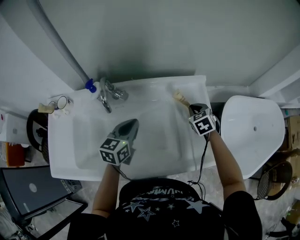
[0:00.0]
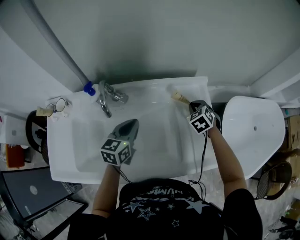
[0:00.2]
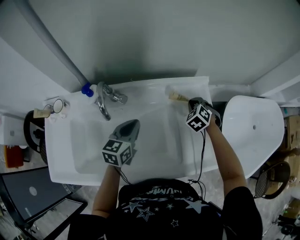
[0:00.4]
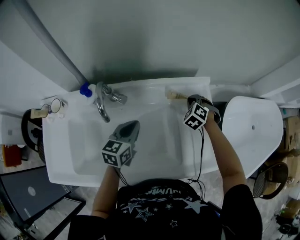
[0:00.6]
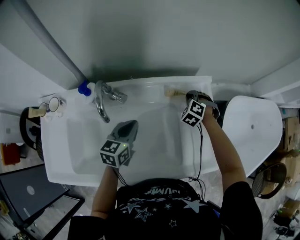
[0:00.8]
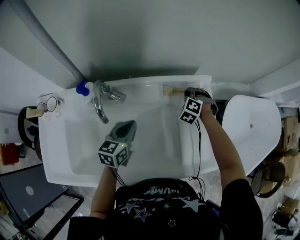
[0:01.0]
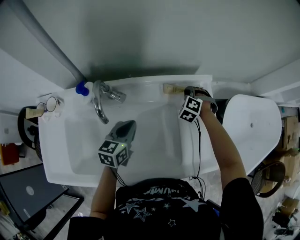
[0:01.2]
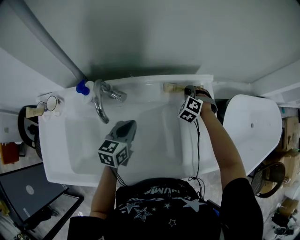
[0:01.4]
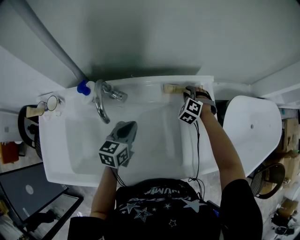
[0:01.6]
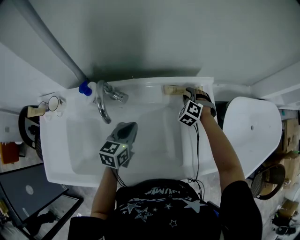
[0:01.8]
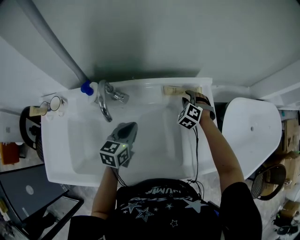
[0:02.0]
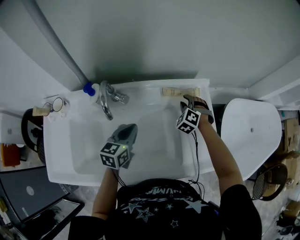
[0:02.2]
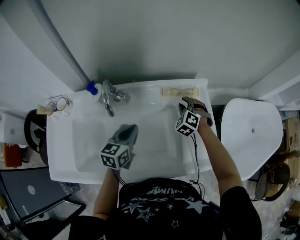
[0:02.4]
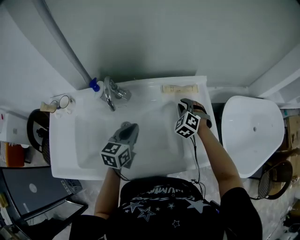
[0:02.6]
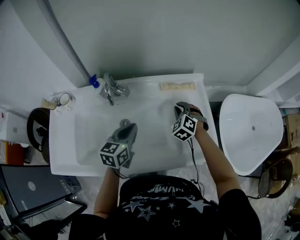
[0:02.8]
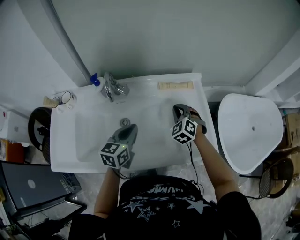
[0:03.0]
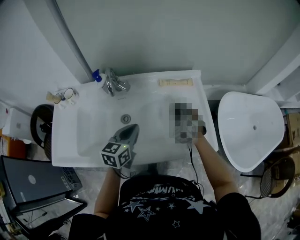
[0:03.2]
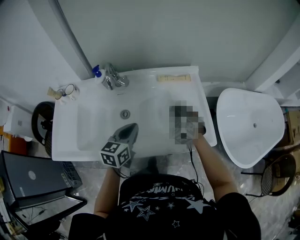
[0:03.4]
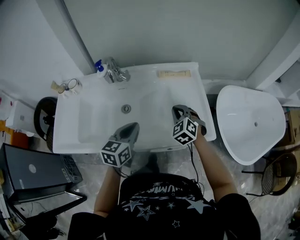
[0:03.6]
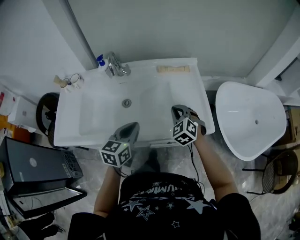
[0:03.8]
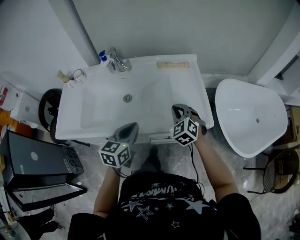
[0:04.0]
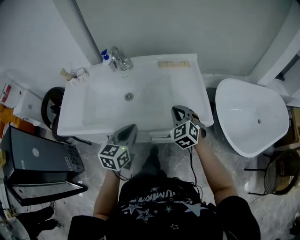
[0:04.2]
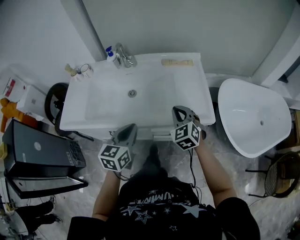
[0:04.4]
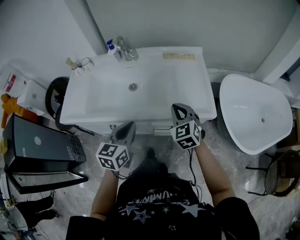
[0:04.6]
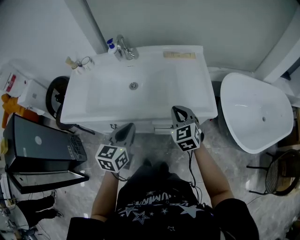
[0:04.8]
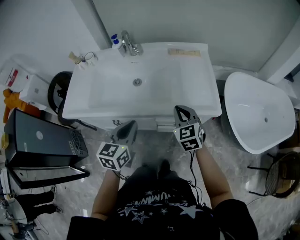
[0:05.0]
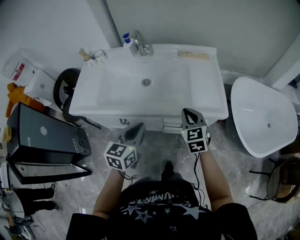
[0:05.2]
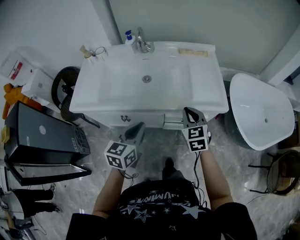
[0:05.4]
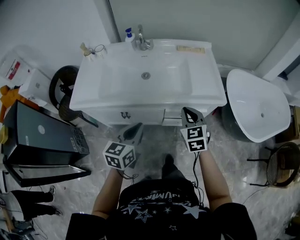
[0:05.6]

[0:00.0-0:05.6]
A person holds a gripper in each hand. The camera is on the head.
0.0 to 1.4 s: The left gripper goes some 5 cm downward. The right gripper heads forward, downward and to the left, covering approximately 15 cm, and twists approximately 40 degrees counterclockwise, seen from behind.
1.4 to 2.8 s: The left gripper shifts about 5 cm backward. The right gripper goes roughly 15 cm backward.
2.8 to 4.2 s: Both grippers travel together backward, approximately 25 cm. The right gripper turns by approximately 20 degrees.
4.2 to 5.6 s: The two grippers go about 15 cm backward and to the left. The right gripper changes its angle by some 20 degrees.

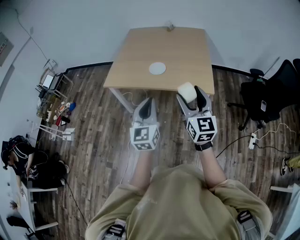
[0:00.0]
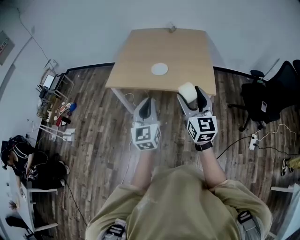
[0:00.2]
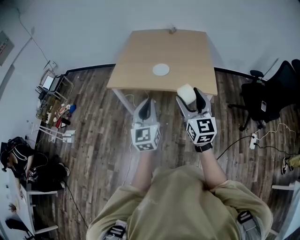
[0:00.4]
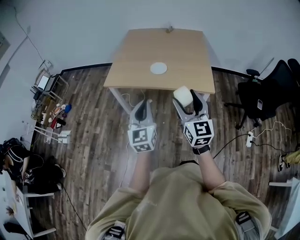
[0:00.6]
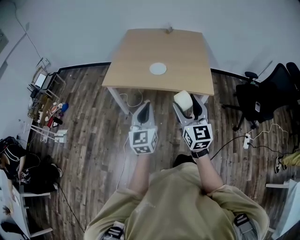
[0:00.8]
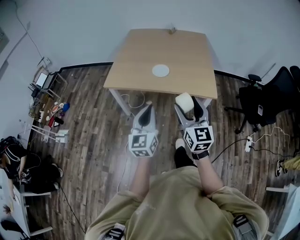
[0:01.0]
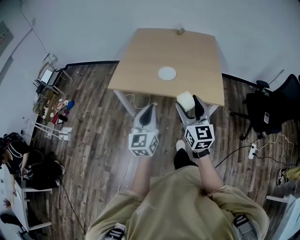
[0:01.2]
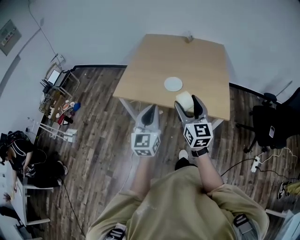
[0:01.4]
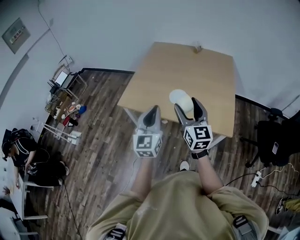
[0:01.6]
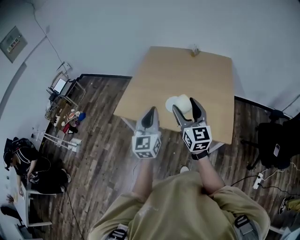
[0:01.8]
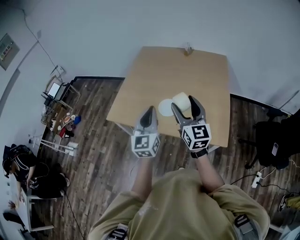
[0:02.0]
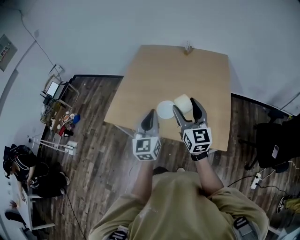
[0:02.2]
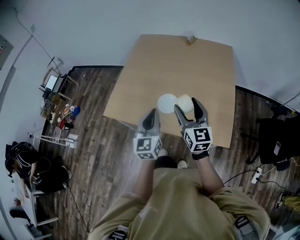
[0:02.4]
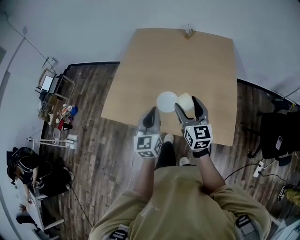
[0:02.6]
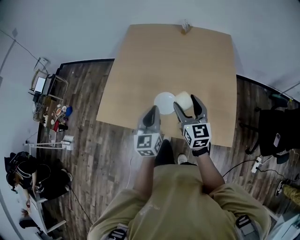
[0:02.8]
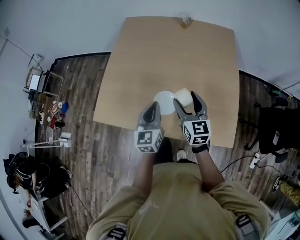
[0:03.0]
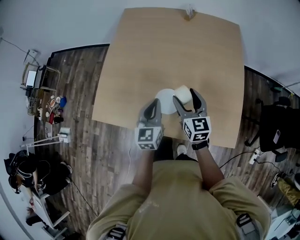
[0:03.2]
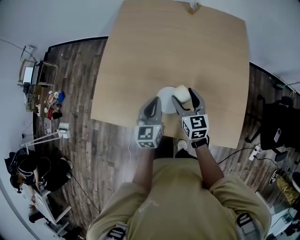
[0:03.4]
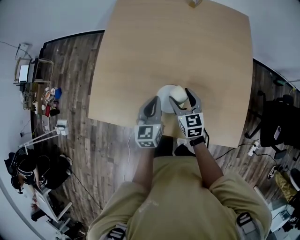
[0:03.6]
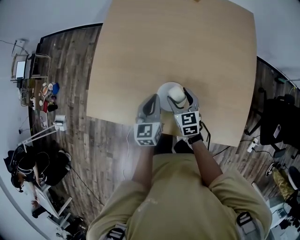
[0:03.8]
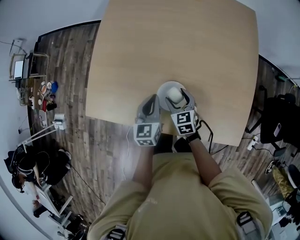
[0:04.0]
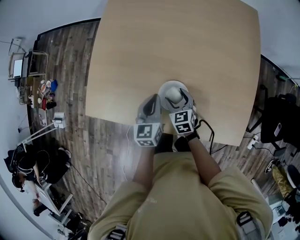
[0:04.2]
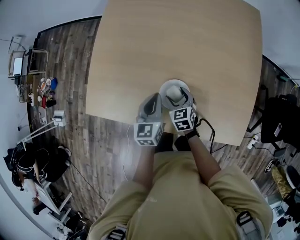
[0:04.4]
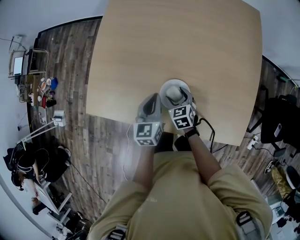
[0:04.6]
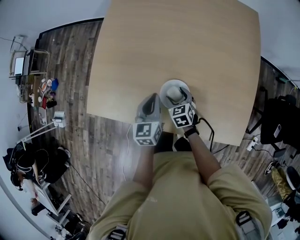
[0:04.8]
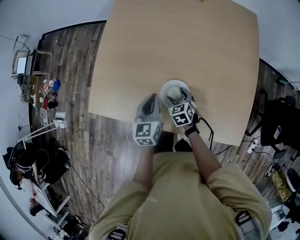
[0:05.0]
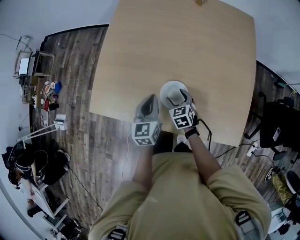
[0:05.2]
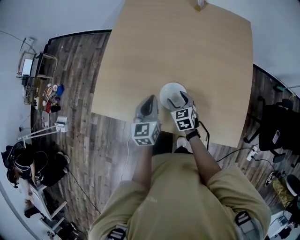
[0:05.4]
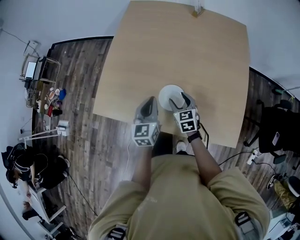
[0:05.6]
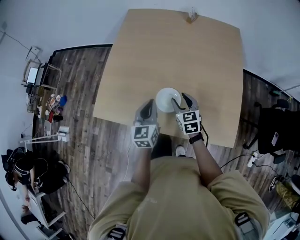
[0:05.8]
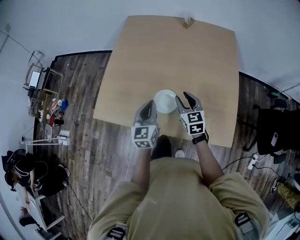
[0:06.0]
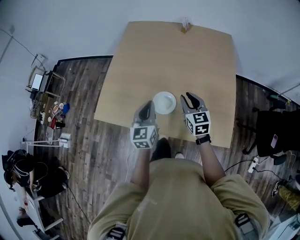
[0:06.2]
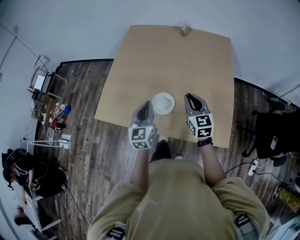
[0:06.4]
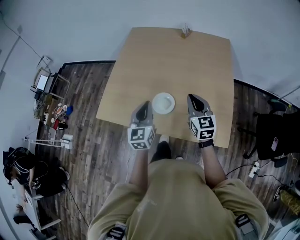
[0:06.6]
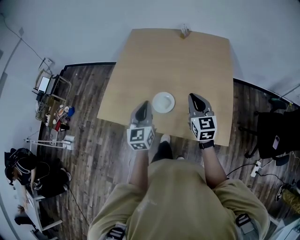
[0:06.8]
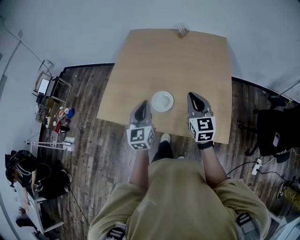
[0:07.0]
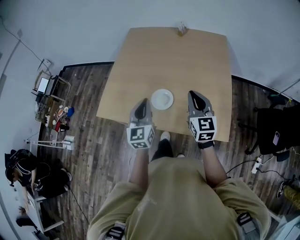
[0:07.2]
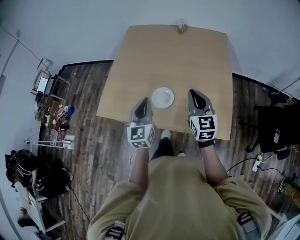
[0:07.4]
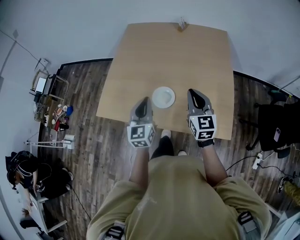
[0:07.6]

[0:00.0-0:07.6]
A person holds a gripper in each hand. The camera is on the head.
0.0 to 1.6 s: The two grippers go roughly 25 cm forward.
1.6 to 3.0 s: Both grippers move forward and downward, roughly 35 cm.
3.0 to 4.6 s: The right gripper is displaced downward by some 30 cm, and tilts its fingers some 40 degrees downward. Meanwhile the left gripper moves downward and forward, approximately 15 cm.
4.6 to 6.0 s: The right gripper moves upward and to the right, about 20 cm, turns by roughly 30 degrees, and closes up. The left gripper is displaced upward and backward by roughly 15 cm.
6.0 to 7.6 s: The left gripper travels upward and backward by approximately 10 cm, while the right gripper shifts approximately 15 cm upward, backward and to the right, and closes up.

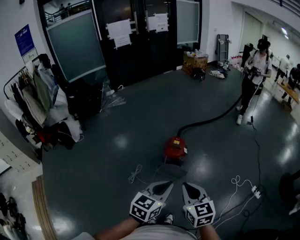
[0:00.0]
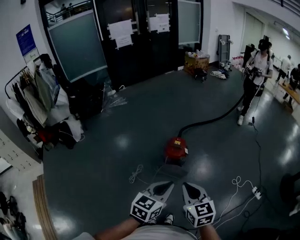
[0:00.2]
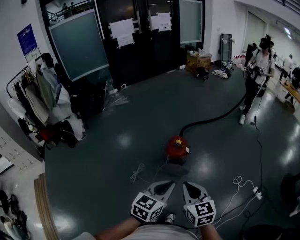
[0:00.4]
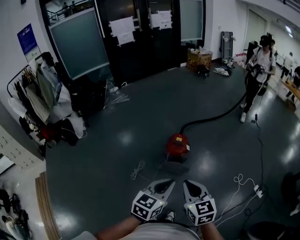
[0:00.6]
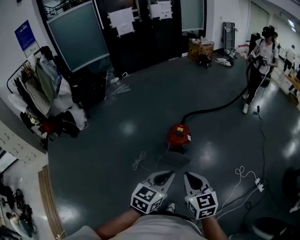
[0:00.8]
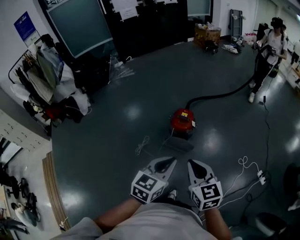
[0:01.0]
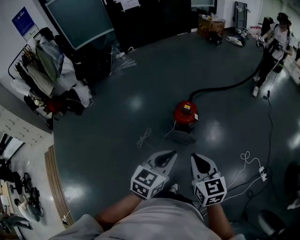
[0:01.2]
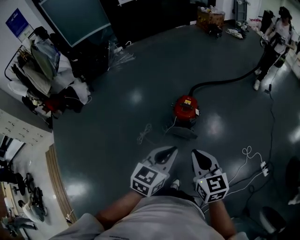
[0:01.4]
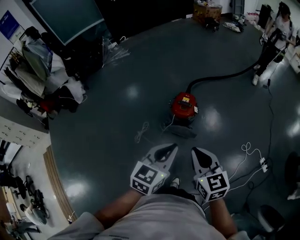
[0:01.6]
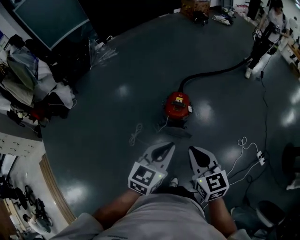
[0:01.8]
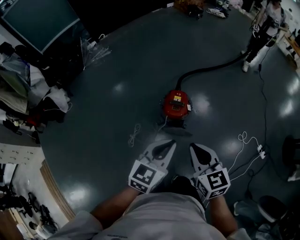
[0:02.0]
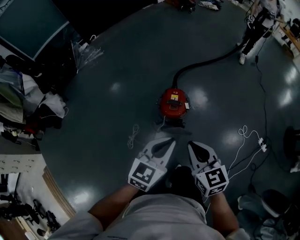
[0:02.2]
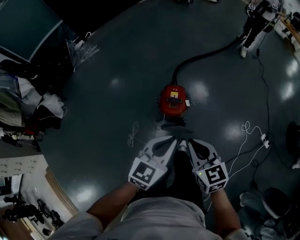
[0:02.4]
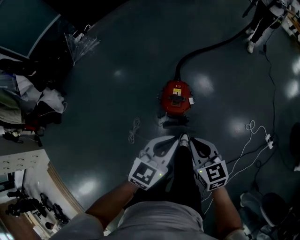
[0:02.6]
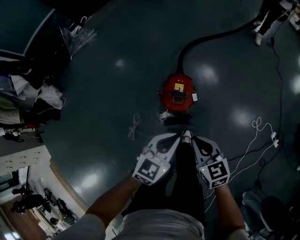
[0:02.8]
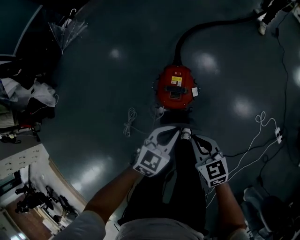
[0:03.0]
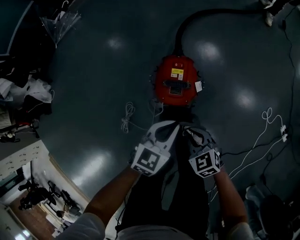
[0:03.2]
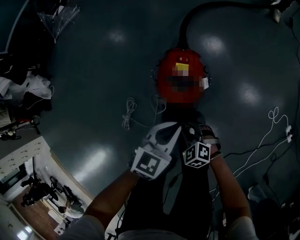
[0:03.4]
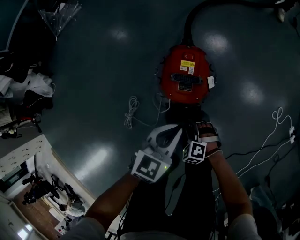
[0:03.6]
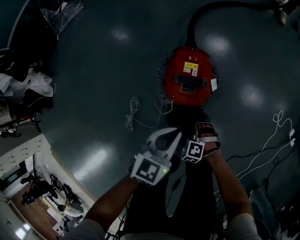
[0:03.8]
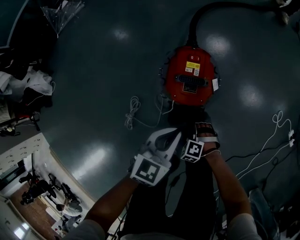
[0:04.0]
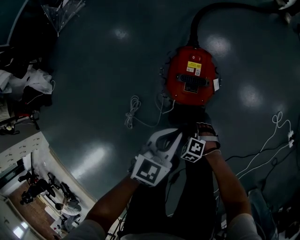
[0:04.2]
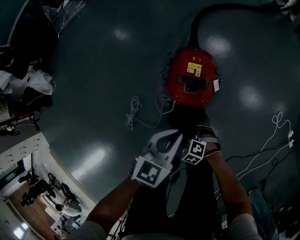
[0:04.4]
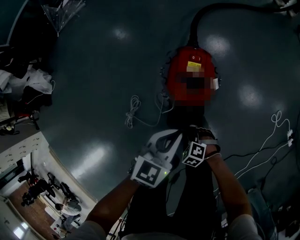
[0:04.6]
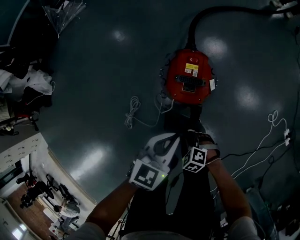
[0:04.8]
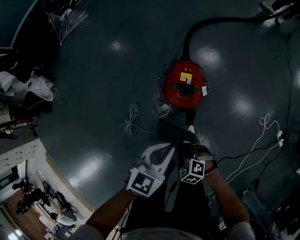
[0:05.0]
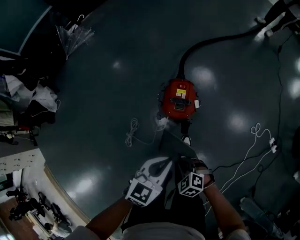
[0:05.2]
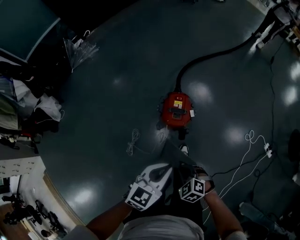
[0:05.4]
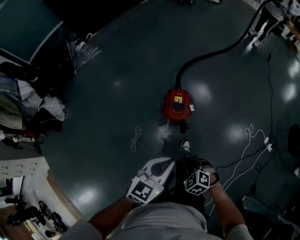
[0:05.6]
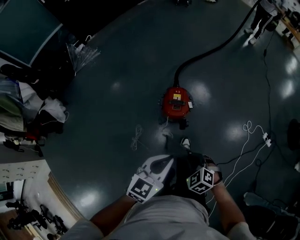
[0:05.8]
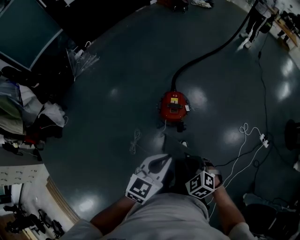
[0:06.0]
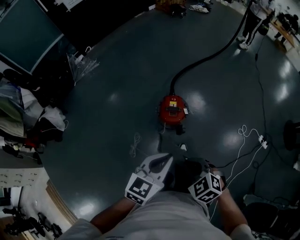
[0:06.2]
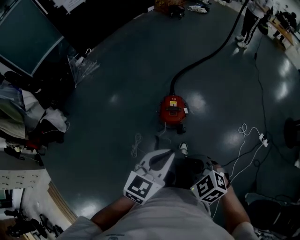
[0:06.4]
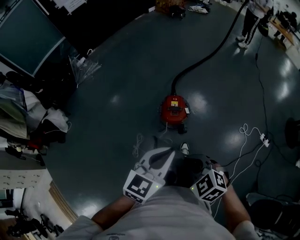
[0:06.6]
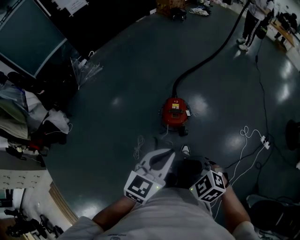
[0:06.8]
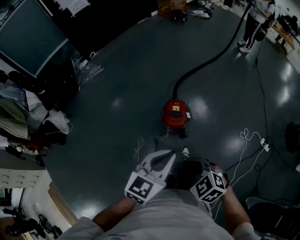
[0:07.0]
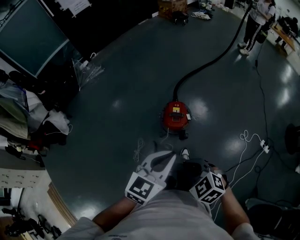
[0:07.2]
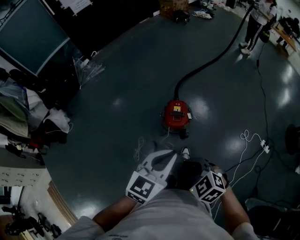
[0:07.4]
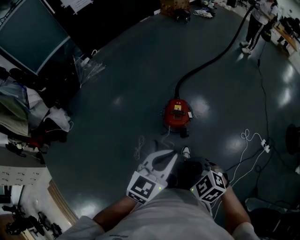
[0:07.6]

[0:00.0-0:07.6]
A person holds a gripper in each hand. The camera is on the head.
0.0 to 1.6 s: Both grippers move forward, some 10 cm.
1.6 to 3.0 s: Both grippers travel together downward and forward, approximately 40 cm. The left gripper changes its angle by some 20 degrees.
3.0 to 4.6 s: The left gripper travels downward by approximately 10 cm. The right gripper is displaced downward by some 30 cm, angles its fingers downward, by approximately 40 degrees, and opens, then closes once more.
4.6 to 6.0 s: The right gripper travels upward by roughly 50 cm, and turns by roughly 30 degrees. Meanwhile the left gripper goes roughly 40 cm upward and backward.
6.0 to 7.6 s: The two grippers go approximately 10 cm upward.

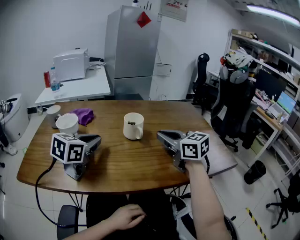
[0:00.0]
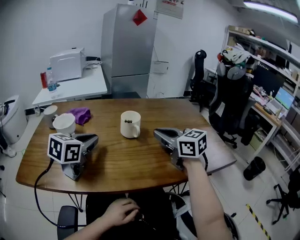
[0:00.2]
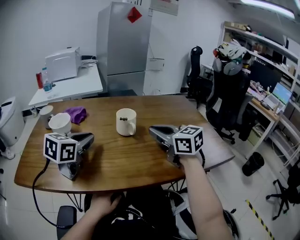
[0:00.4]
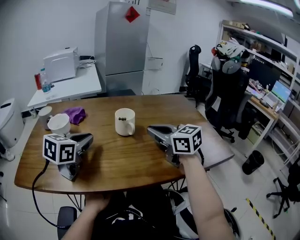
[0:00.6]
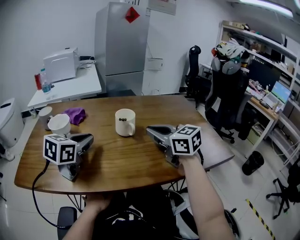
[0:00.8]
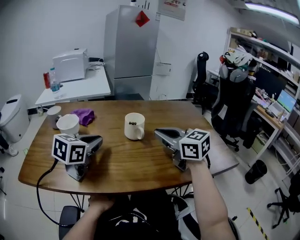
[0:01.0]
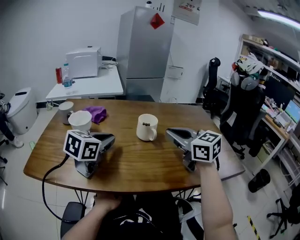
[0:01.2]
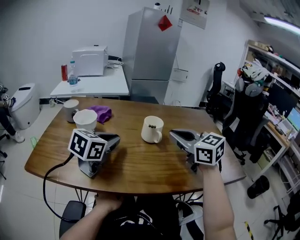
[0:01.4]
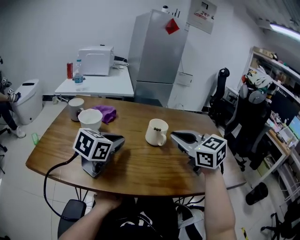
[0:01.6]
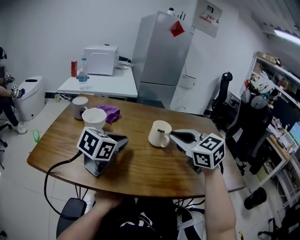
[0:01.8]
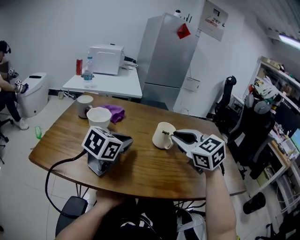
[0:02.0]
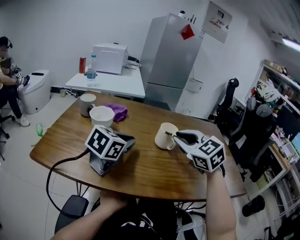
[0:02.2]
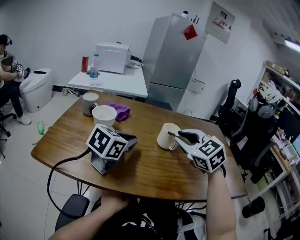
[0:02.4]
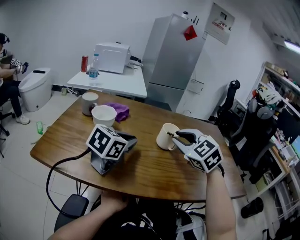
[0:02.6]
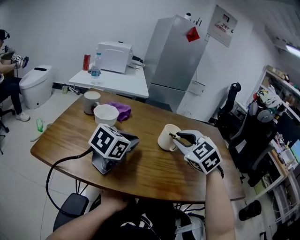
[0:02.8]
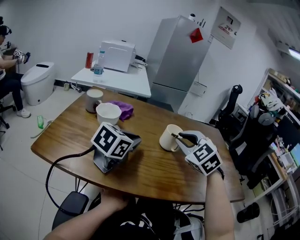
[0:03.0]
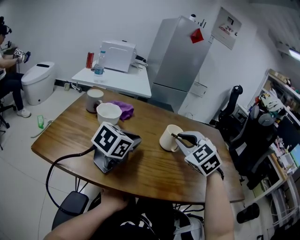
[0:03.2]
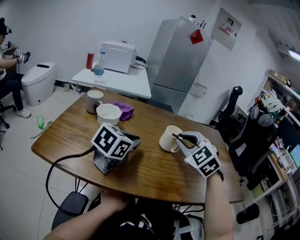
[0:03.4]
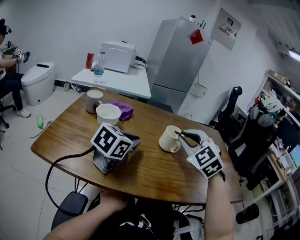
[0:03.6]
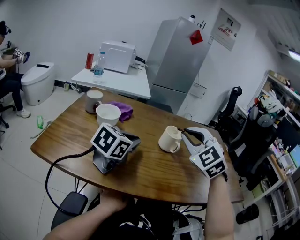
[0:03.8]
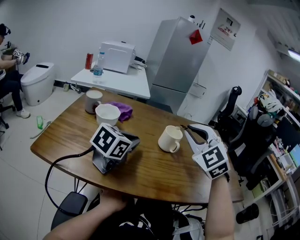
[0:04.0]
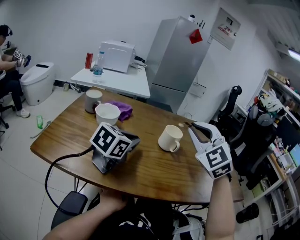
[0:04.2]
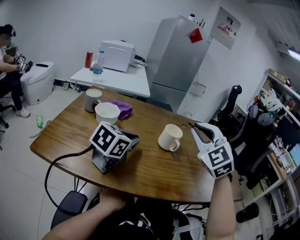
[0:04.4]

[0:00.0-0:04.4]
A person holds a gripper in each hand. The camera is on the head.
0.0 to 1.4 s: The right gripper shifts by roughly 5 cm.
1.4 to 3.0 s: The right gripper goes roughly 5 cm to the left, and turns by roughly 40 degrees.
3.0 to 4.4 s: The right gripper goes roughly 10 cm upward.
